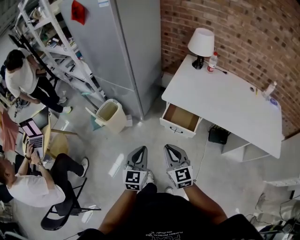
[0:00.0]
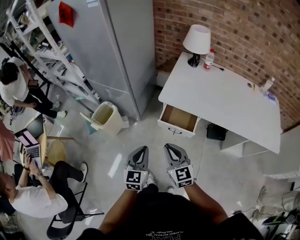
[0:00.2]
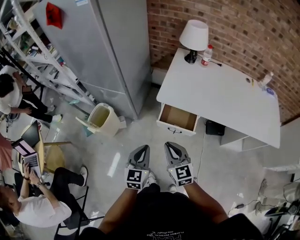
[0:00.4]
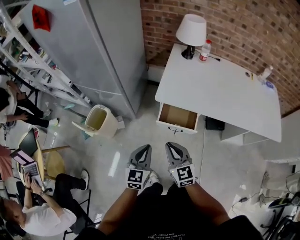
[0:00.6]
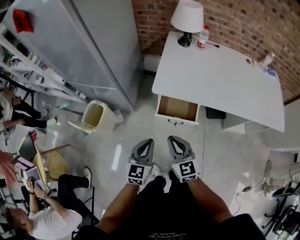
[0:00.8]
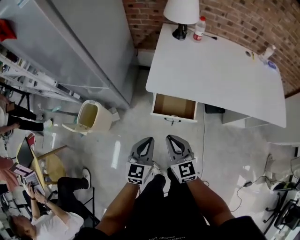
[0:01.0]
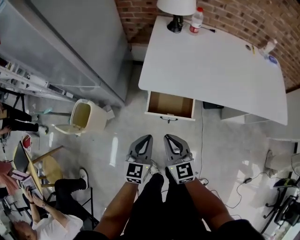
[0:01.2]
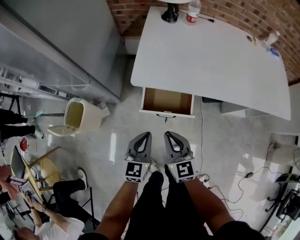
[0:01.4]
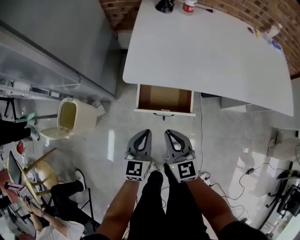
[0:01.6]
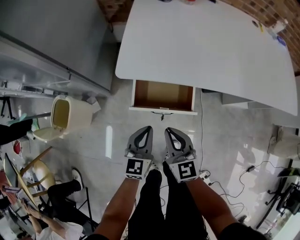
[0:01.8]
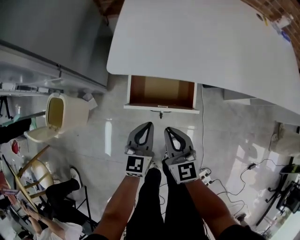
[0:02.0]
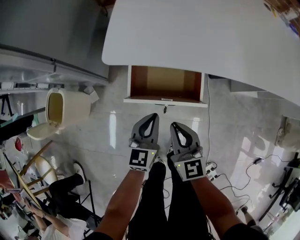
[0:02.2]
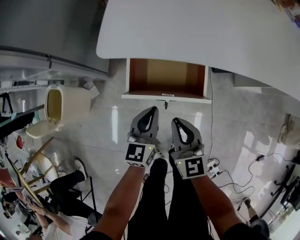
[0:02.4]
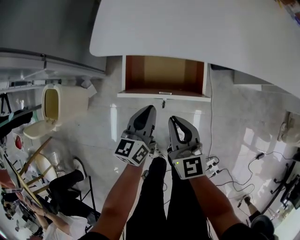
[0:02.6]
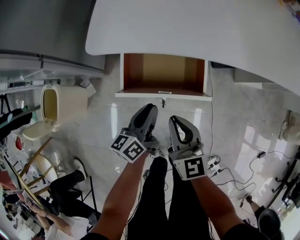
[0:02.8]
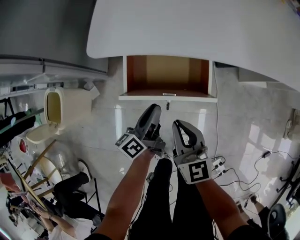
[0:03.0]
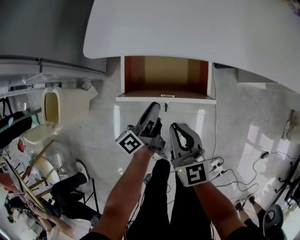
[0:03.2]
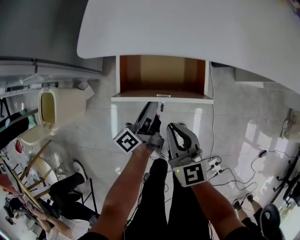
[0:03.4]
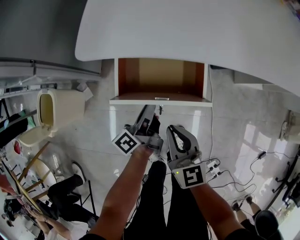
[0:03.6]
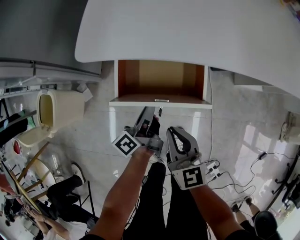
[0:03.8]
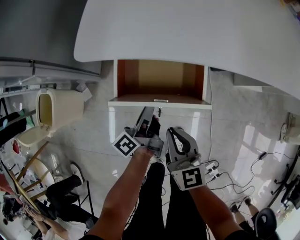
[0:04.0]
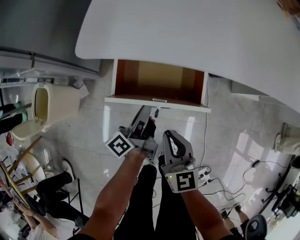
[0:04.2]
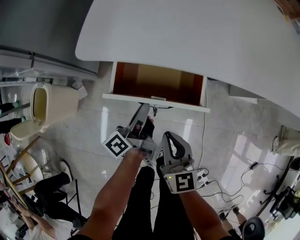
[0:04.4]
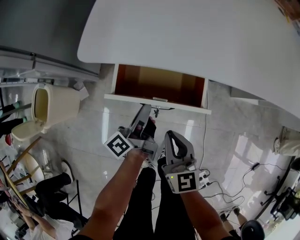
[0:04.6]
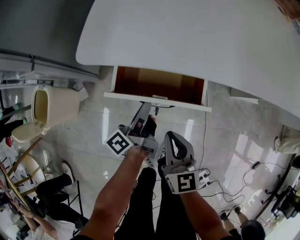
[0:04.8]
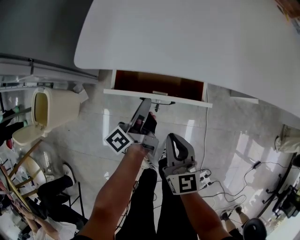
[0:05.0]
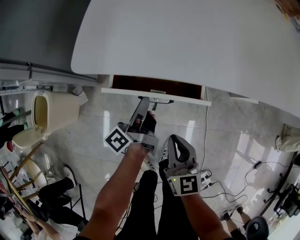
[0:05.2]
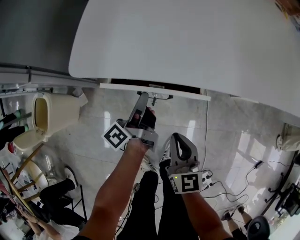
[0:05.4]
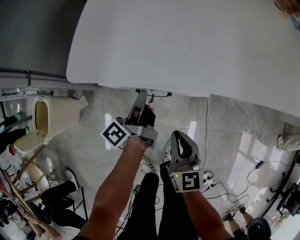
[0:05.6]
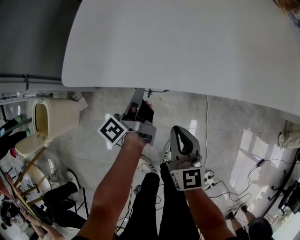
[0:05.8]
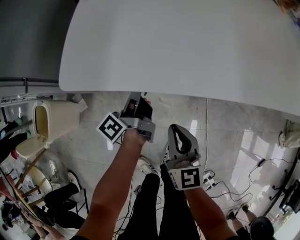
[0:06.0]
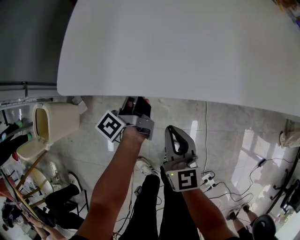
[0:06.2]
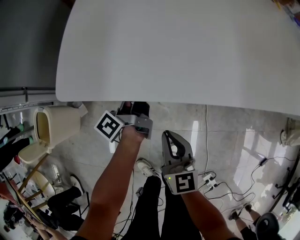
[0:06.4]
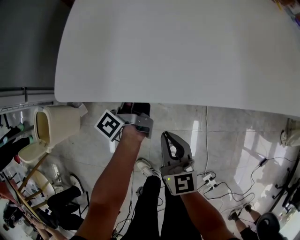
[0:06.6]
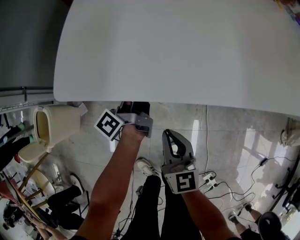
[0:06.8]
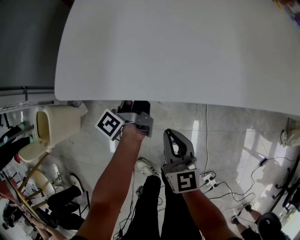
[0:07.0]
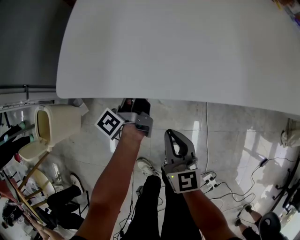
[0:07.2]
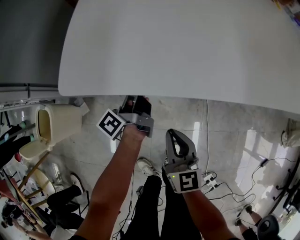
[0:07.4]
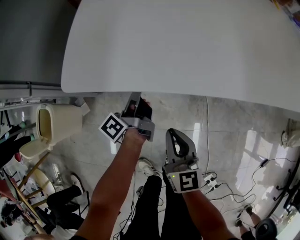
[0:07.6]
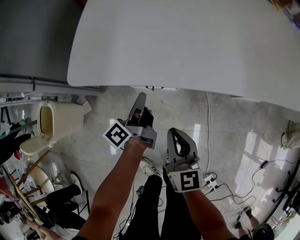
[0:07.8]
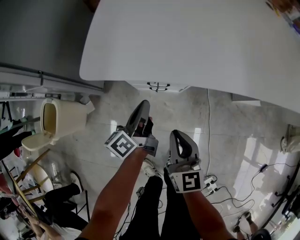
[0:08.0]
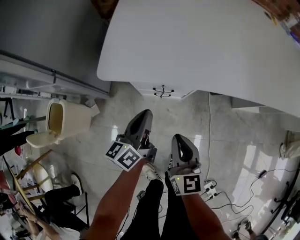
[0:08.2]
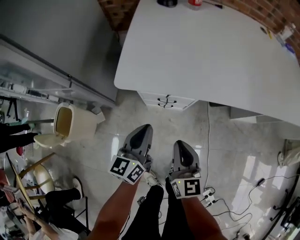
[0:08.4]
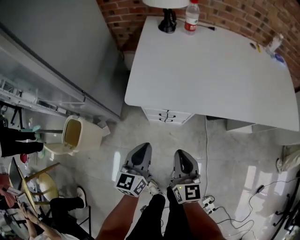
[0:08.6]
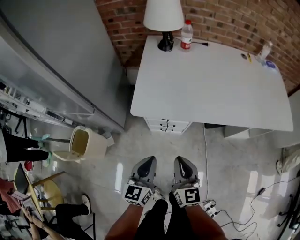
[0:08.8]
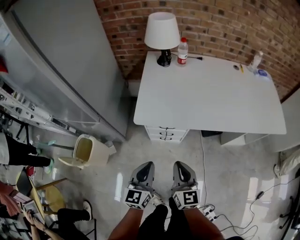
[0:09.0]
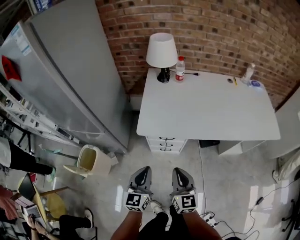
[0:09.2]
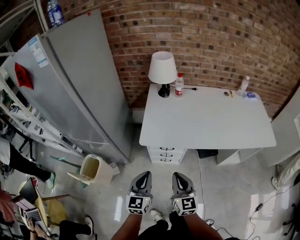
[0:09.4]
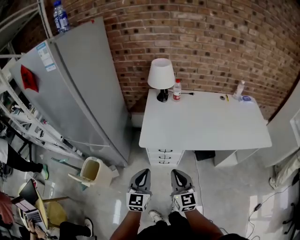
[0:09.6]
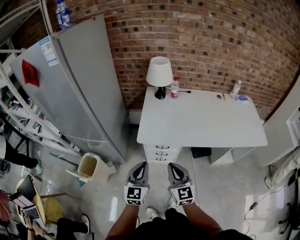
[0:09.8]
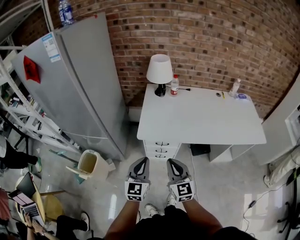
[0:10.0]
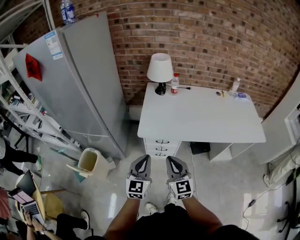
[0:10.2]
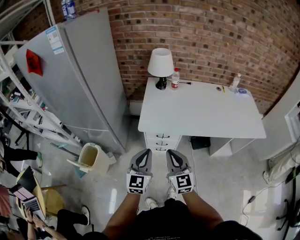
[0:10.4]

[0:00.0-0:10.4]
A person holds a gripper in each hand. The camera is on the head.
0:00.0 to 0:01.4: The right gripper goes some 25 cm downward and forward, and changes its angle by some 20 degrees; the left gripper moves forward and downward, roughly 25 cm, and turns by roughly 20 degrees.
0:01.4 to 0:03.0: The grippers both shift downward by about 20 cm. The left gripper rotates around the line of its fingers by about 50 degrees, counterclockwise from behind, and opens its fingers.
0:03.0 to 0:04.4: The grippers stay close to where they were, moving slightly.
0:04.4 to 0:06.0: The right gripper shifts some 5 cm forward. Meanwhile the left gripper goes some 10 cm forward.
0:06.0 to 0:07.4: The grippers move only a little.
0:07.4 to 0:09.0: The left gripper goes approximately 40 cm upward and backward, and rolls clockwise, seen from behind, by approximately 70 degrees. The right gripper is displaced upward by approximately 25 cm.
0:09.0 to 0:10.4: Both grippers move upward, about 15 cm.

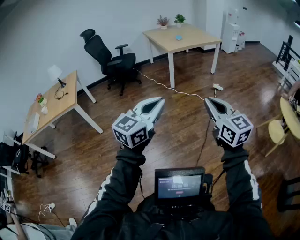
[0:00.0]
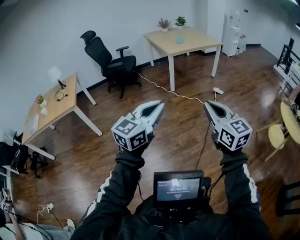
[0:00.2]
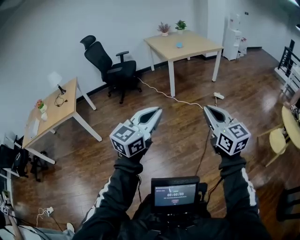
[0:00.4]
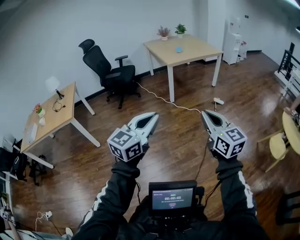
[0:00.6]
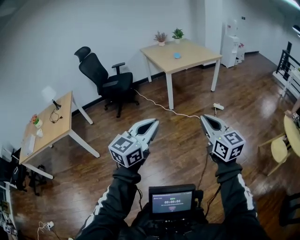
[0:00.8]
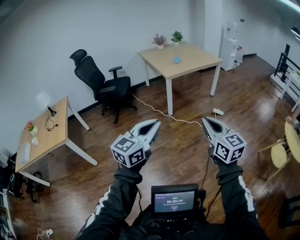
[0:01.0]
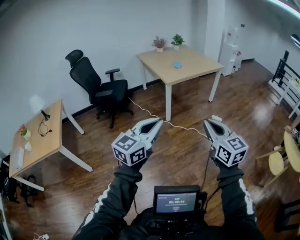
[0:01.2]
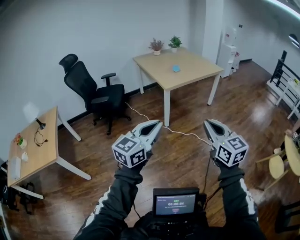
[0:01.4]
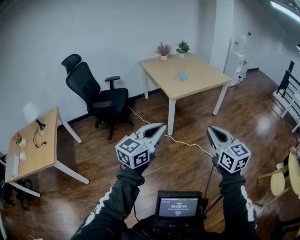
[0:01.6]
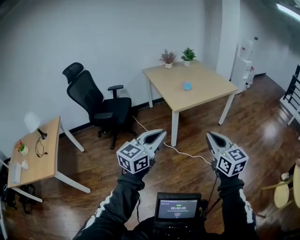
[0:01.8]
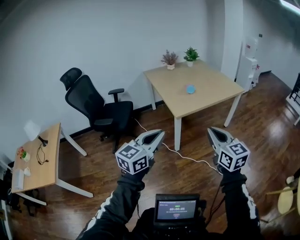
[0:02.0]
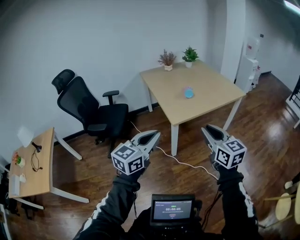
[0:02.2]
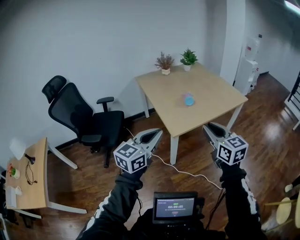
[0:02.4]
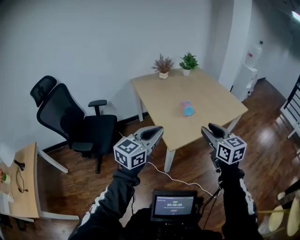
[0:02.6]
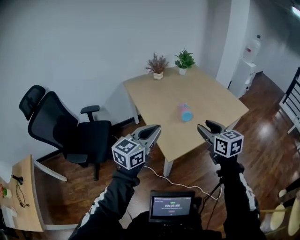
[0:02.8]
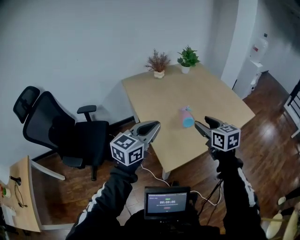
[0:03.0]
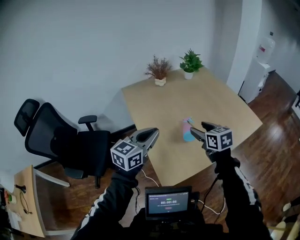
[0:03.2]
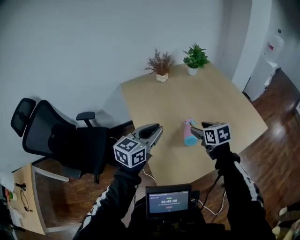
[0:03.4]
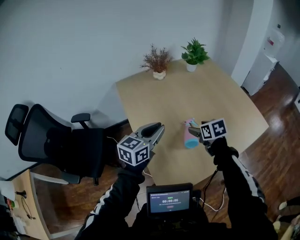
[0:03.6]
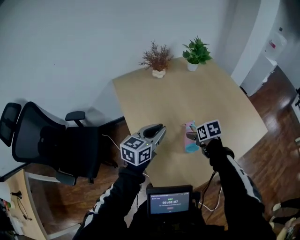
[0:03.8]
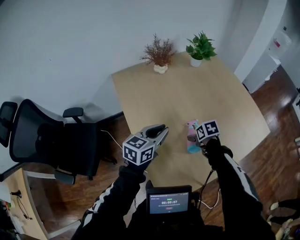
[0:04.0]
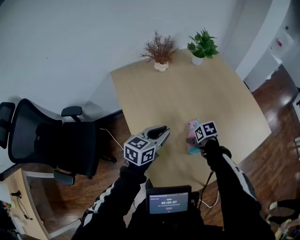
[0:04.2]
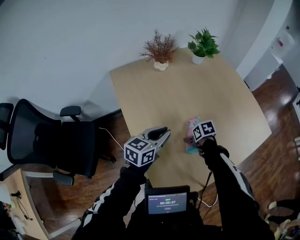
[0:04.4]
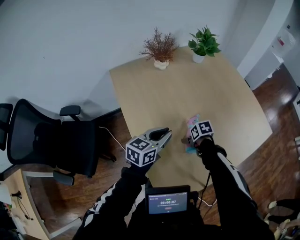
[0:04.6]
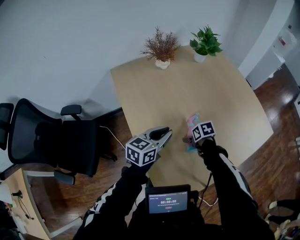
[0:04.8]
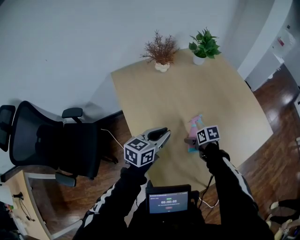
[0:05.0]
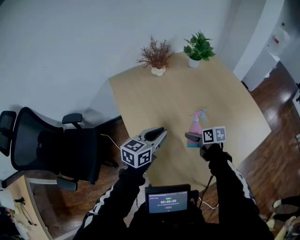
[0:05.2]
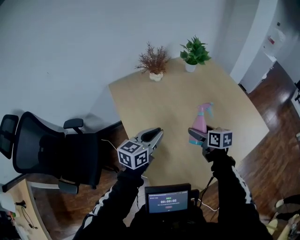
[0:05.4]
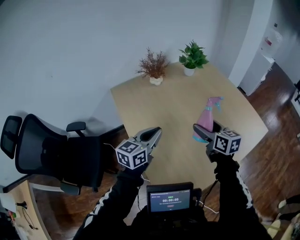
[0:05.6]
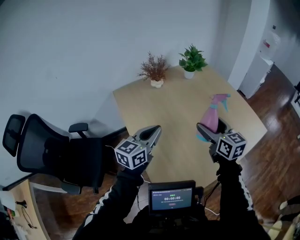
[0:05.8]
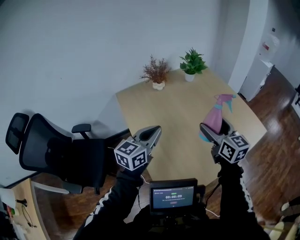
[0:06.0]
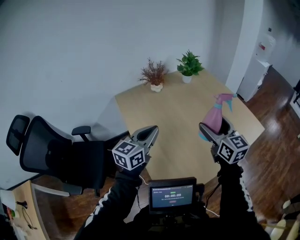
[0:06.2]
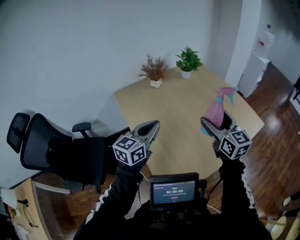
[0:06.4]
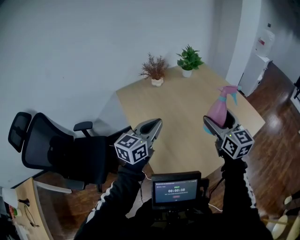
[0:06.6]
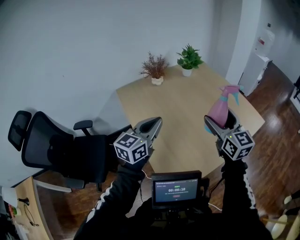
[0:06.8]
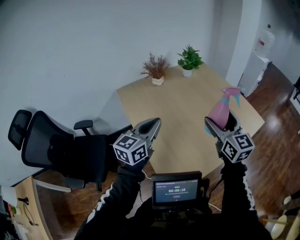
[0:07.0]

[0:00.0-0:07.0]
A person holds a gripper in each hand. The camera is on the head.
0:00.0 to 0:01.4: The two grippers travel together, forward, some 60 cm.
0:01.4 to 0:02.8: The pair of grippers is taken forward, some 1 m. The right gripper opens up.
0:02.8 to 0:04.2: Both grippers are carried forward, roughly 70 cm. The left gripper turns by approximately 20 degrees; the right gripper travels downward by some 35 cm, tilts its fingers roughly 50 degrees downward, and opens up.
0:04.2 to 0:05.6: The left gripper moves upward, roughly 10 cm, while the right gripper is displaced upward by about 30 cm, and tips its fingers upward by about 50 degrees.
0:05.6 to 0:07.0: Both grippers move backward and upward, some 20 cm. The right gripper changes its angle by approximately 30 degrees.

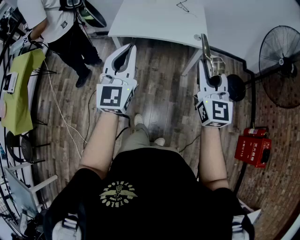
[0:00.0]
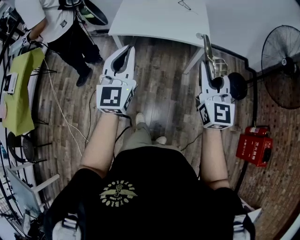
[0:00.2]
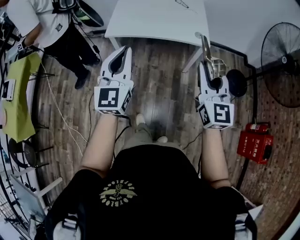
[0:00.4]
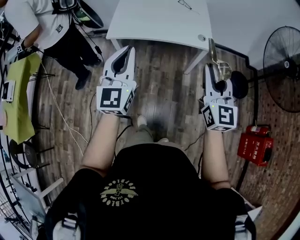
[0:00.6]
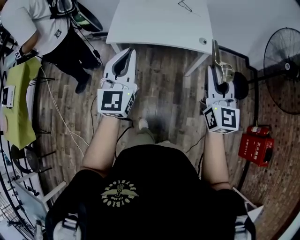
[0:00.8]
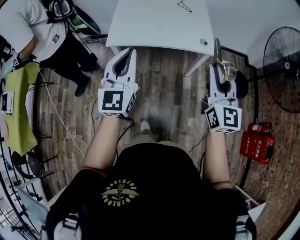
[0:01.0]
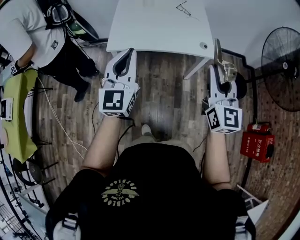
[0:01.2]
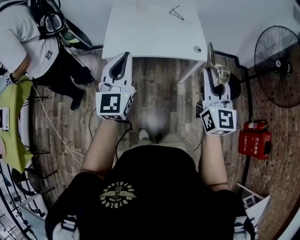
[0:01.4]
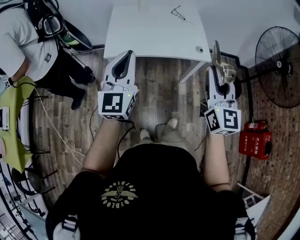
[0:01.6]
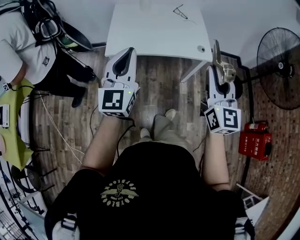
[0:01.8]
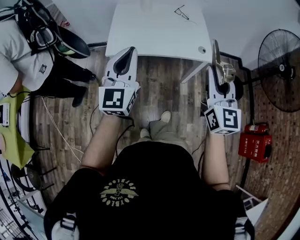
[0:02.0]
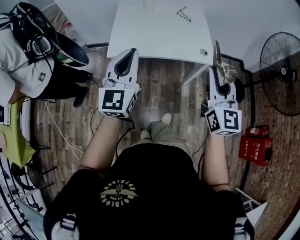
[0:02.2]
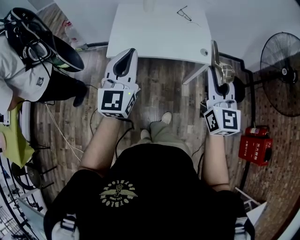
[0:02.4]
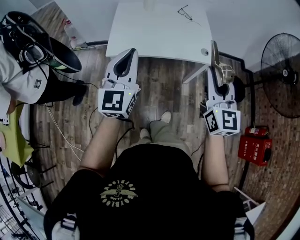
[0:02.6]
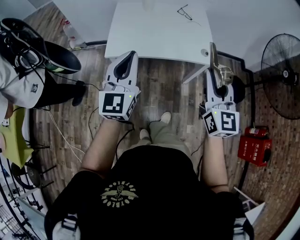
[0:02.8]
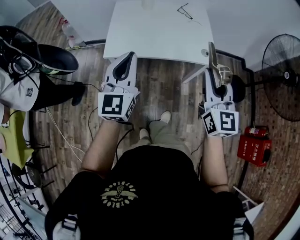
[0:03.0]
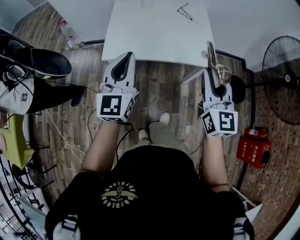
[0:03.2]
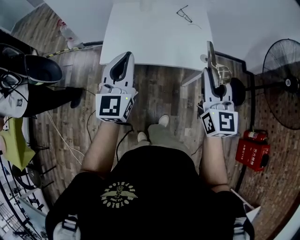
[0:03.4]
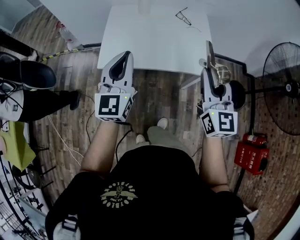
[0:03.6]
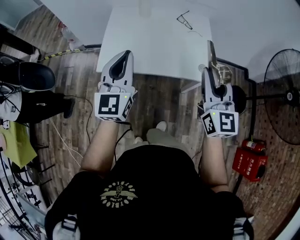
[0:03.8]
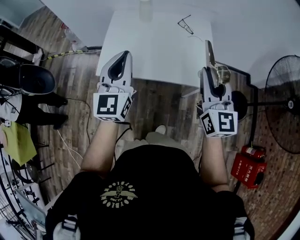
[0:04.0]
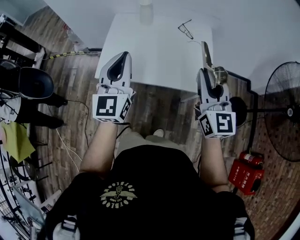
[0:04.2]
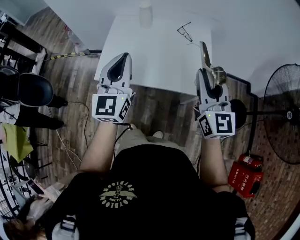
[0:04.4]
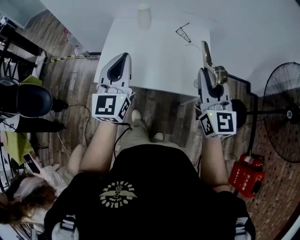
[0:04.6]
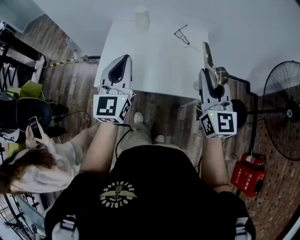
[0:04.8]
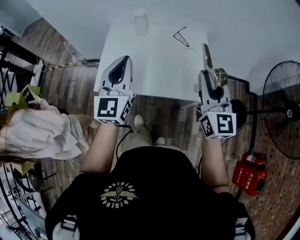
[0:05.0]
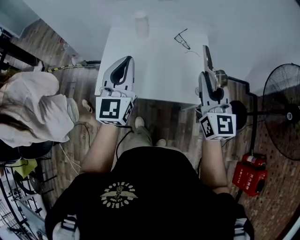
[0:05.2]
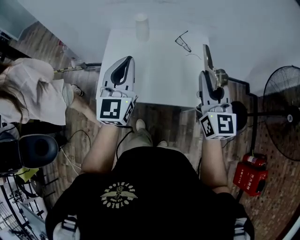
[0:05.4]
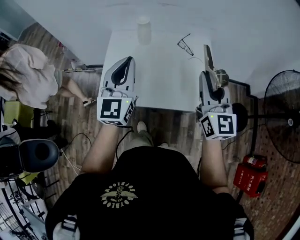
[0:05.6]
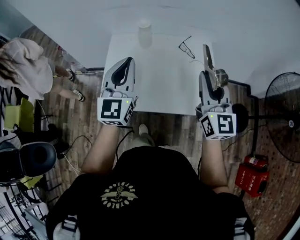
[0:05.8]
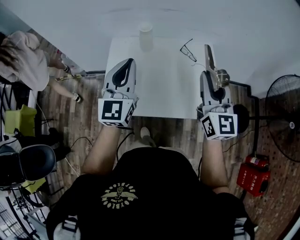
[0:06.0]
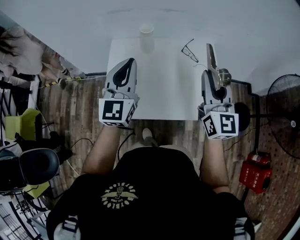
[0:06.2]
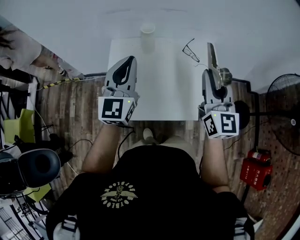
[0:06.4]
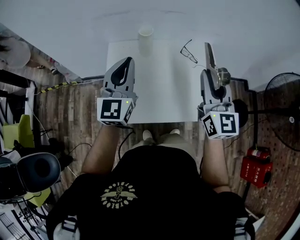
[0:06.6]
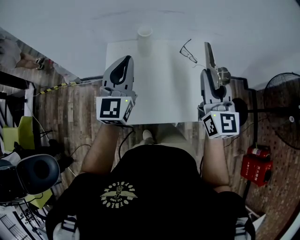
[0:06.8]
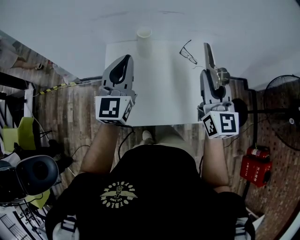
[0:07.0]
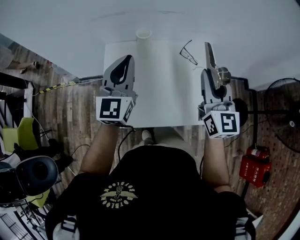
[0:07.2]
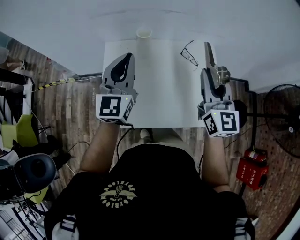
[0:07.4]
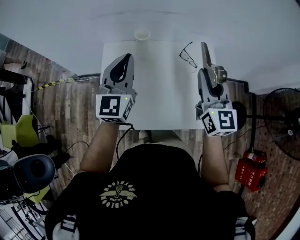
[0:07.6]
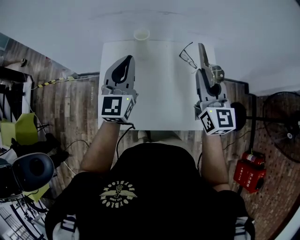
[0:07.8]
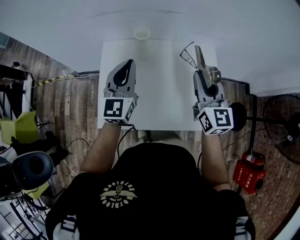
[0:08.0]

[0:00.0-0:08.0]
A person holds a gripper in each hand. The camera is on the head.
0:00.0 to 0:01.6: Both grippers travel together forward and to the left, roughly 20 cm.
0:01.6 to 0:03.2: Both grippers move forward, approximately 10 cm.
0:03.2 to 0:04.8: The two grippers go about 20 cm forward and to the right.
0:04.8 to 0:06.4: Both grippers move forward and to the left, about 20 cm.
0:06.4 to 0:08.0: Both grippers travel together forward and downward, some 15 cm.
